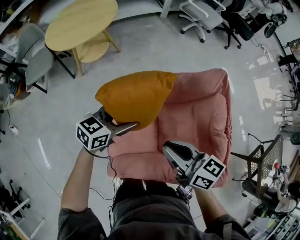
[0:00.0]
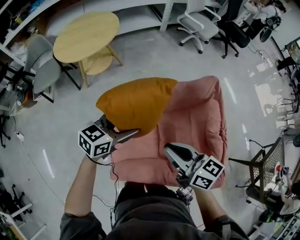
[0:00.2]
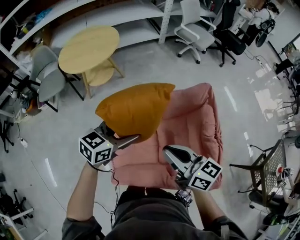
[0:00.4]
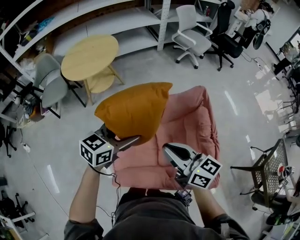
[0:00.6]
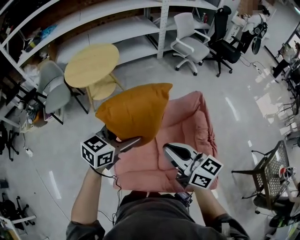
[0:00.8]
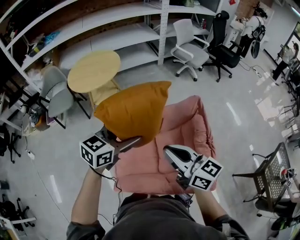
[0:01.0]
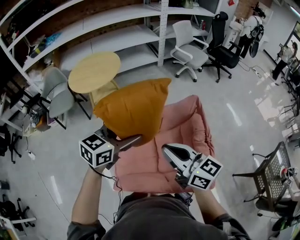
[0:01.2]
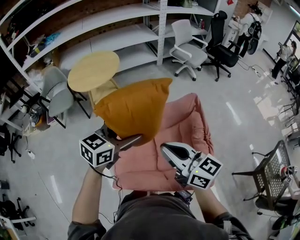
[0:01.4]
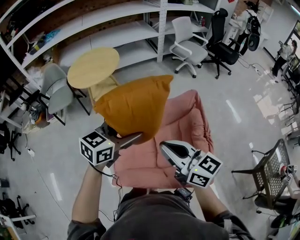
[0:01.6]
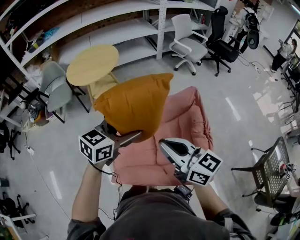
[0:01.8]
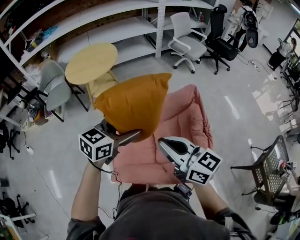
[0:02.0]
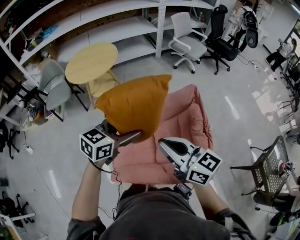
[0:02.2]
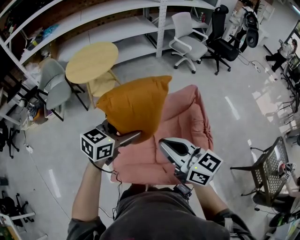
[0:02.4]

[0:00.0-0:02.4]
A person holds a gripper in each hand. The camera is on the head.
0:00.0 to 0:01.2: The two grippers go about 20 cm upward. The right gripper changes its angle by approximately 20 degrees.
0:01.2 to 0:02.4: The grippers stay close to where they were, moving slightly.

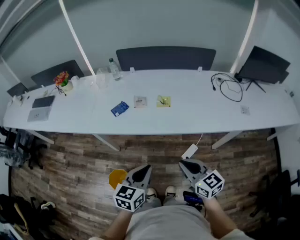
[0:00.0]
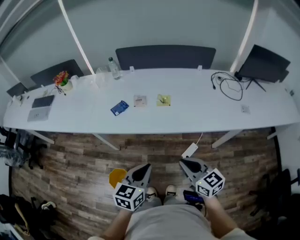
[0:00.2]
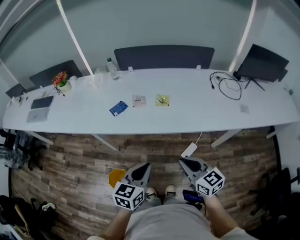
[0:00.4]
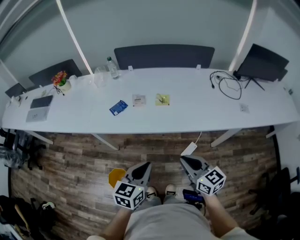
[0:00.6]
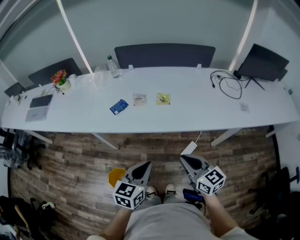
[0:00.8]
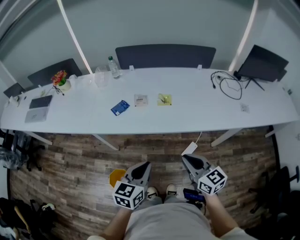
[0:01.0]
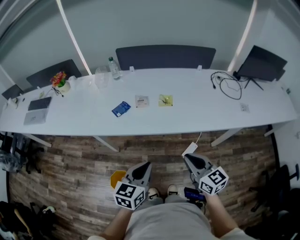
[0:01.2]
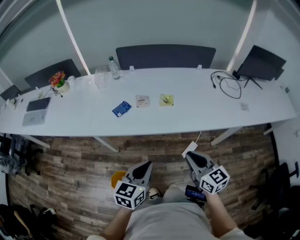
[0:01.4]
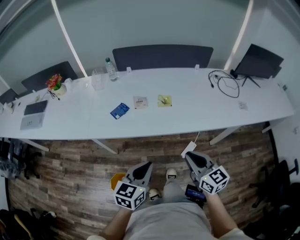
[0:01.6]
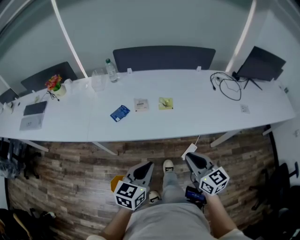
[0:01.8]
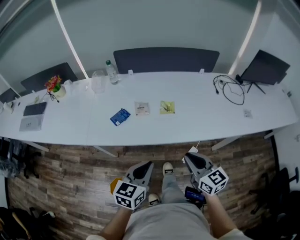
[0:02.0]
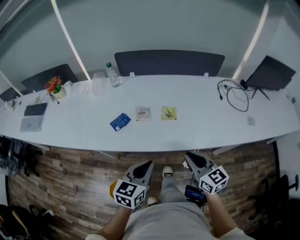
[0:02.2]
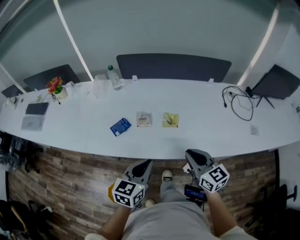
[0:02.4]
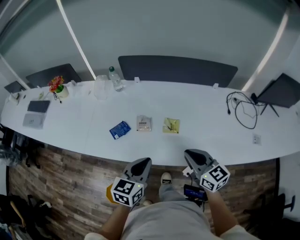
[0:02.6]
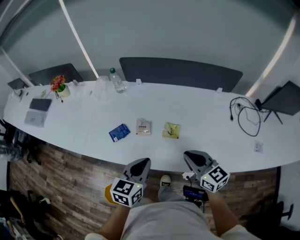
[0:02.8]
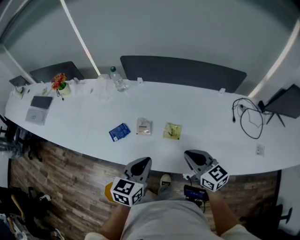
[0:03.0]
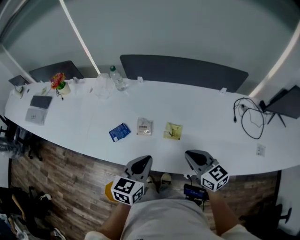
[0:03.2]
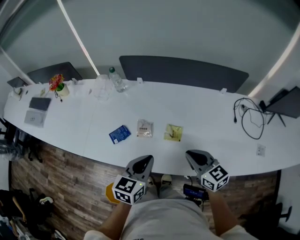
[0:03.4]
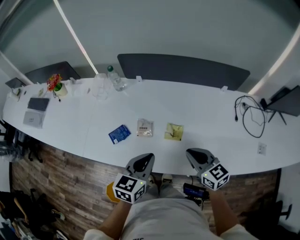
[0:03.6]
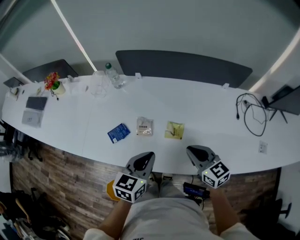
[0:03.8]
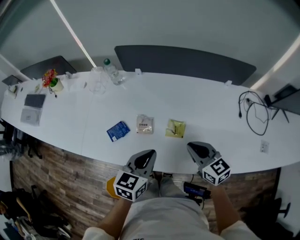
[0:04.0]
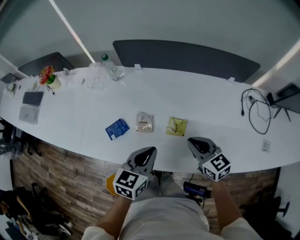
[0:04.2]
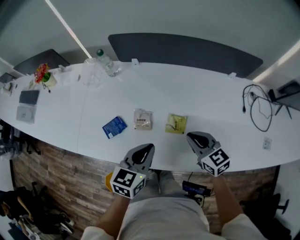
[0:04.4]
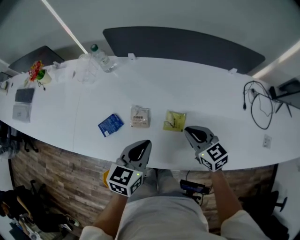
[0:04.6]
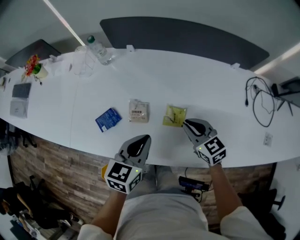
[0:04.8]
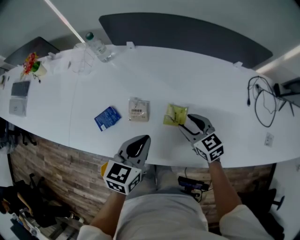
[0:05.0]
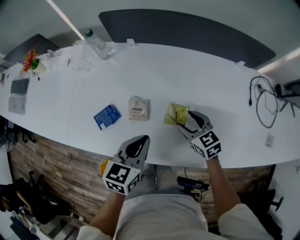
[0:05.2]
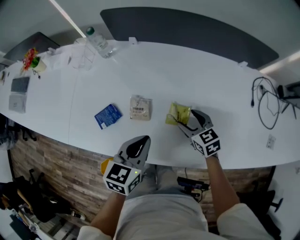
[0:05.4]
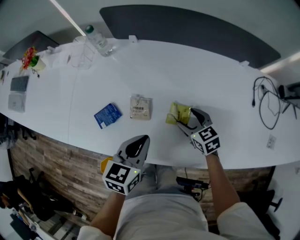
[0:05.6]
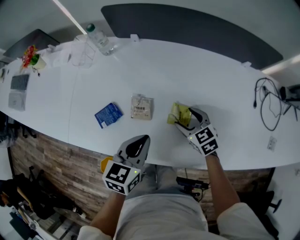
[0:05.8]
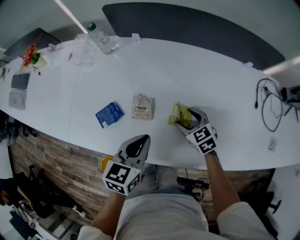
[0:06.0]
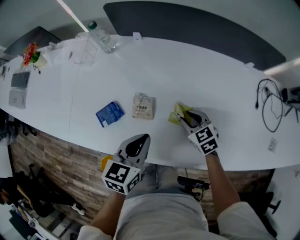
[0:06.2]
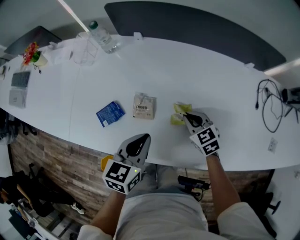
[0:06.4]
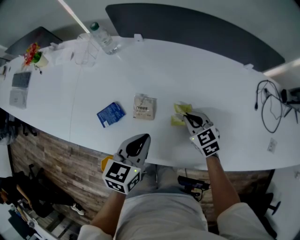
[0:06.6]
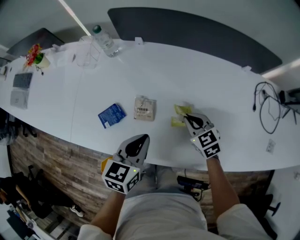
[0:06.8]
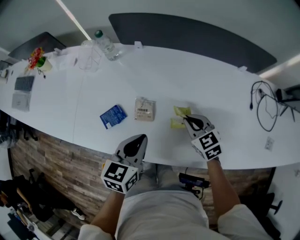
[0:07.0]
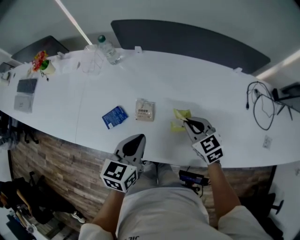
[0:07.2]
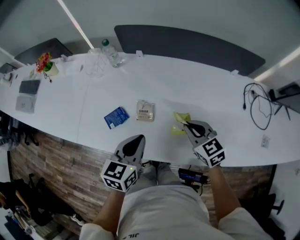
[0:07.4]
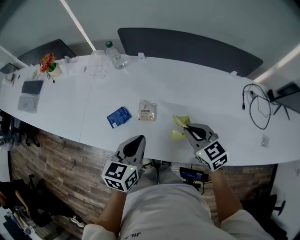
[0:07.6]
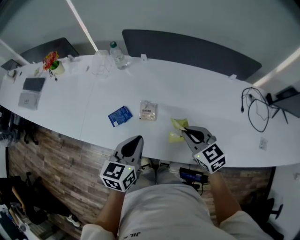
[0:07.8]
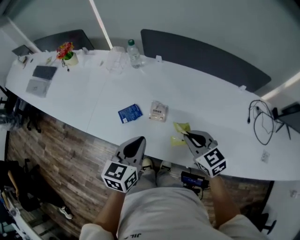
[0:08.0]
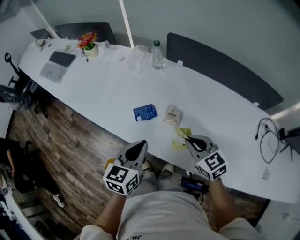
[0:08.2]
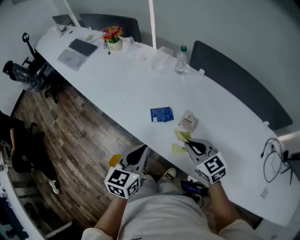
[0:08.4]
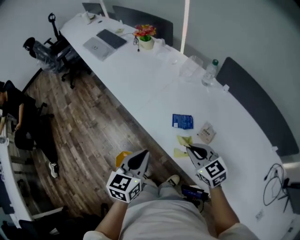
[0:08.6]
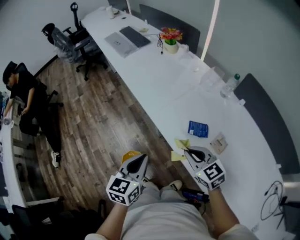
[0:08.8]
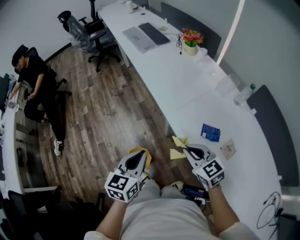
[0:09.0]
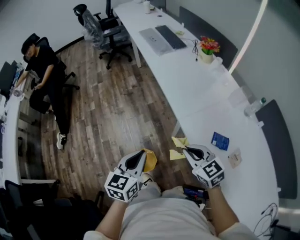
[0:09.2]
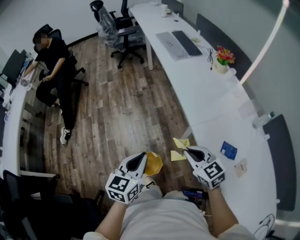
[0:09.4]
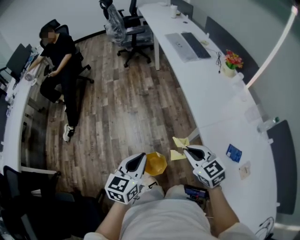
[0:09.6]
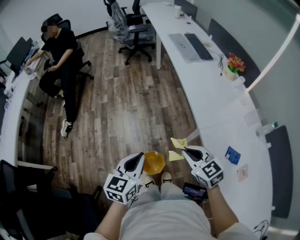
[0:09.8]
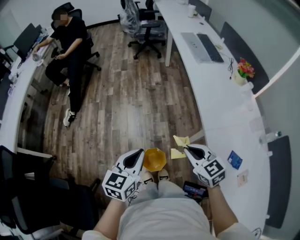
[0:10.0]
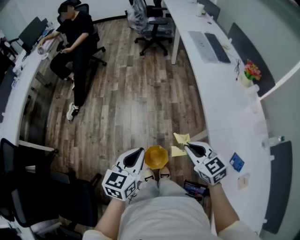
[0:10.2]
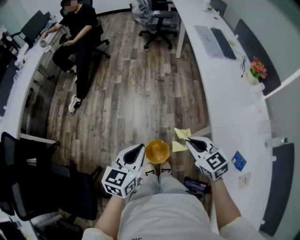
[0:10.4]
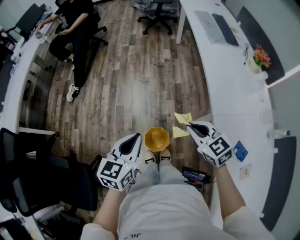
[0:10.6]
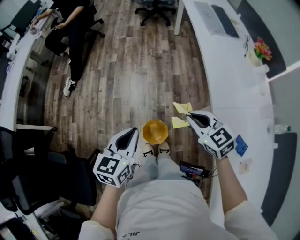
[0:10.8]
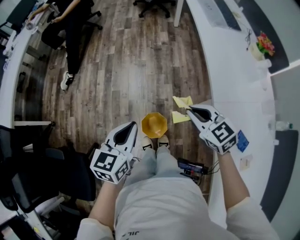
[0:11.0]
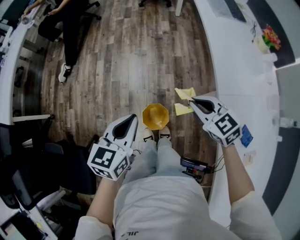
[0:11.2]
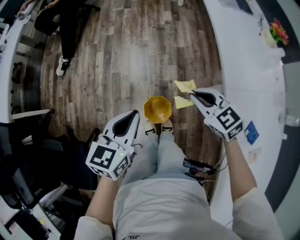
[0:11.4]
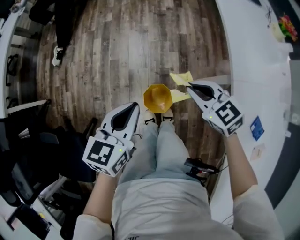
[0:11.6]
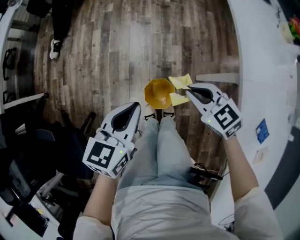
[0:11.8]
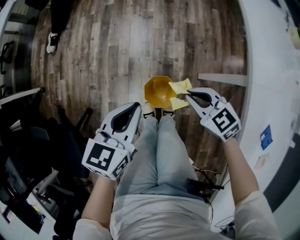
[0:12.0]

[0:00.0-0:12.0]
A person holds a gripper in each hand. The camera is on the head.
0:00.0 to 0:01.6: The left gripper moves approximately 5 cm.
0:01.6 to 0:03.0: The two grippers go approximately 25 cm forward.
0:03.0 to 0:04.4: The left gripper goes roughly 10 cm forward. Meanwhile the right gripper goes some 10 cm forward and downward.
0:04.4 to 0:06.0: The right gripper heads downward and forward, covering some 15 cm, swivels approximately 20 degrees, and opens up; the left gripper moves downward, about 5 cm.
0:06.0 to 0:07.6: The left gripper moves upward, some 5 cm; the right gripper travels upward by approximately 15 cm, and closes up.
0:07.6 to 0:09.0: The right gripper changes place by some 40 cm, and rotates roughly 50 degrees. Meanwhile the left gripper changes place by approximately 40 cm, and swivels about 50 degrees.
0:09.0 to 0:10.4: The left gripper shifts roughly 20 cm to the left, and rotates roughly 20 degrees. The right gripper travels to the left and forward by roughly 25 cm, and rotates approximately 30 degrees.
0:10.4 to 0:12.0: Both grippers move downward, roughly 20 cm. The right gripper changes its angle by about 20 degrees.

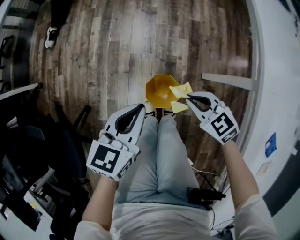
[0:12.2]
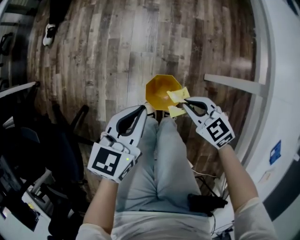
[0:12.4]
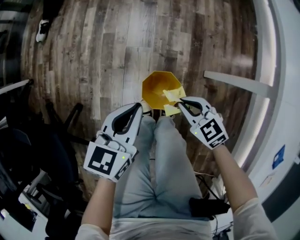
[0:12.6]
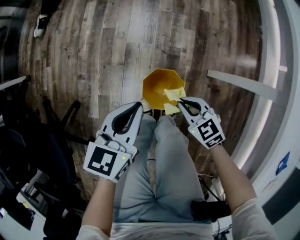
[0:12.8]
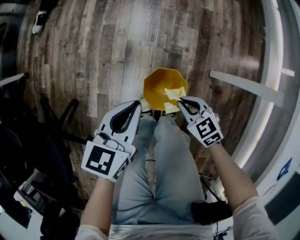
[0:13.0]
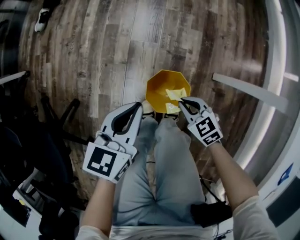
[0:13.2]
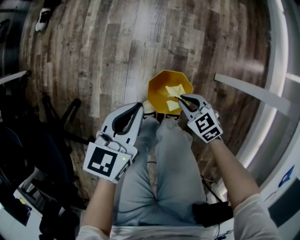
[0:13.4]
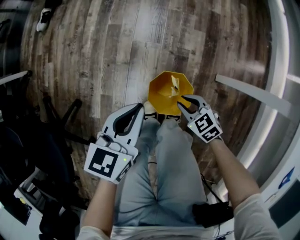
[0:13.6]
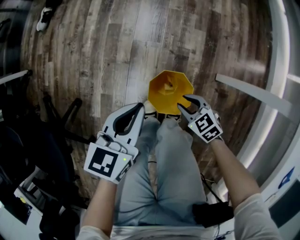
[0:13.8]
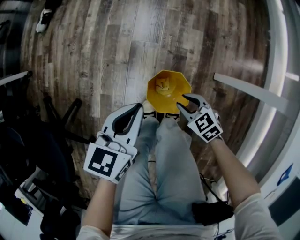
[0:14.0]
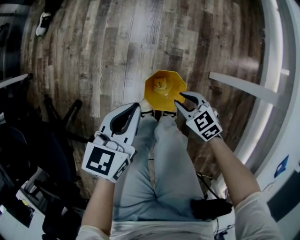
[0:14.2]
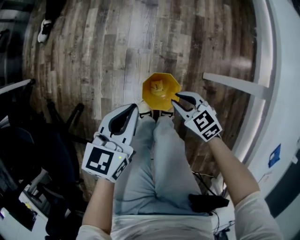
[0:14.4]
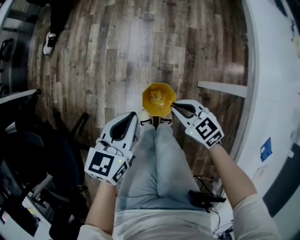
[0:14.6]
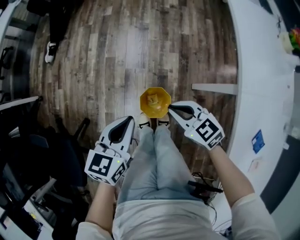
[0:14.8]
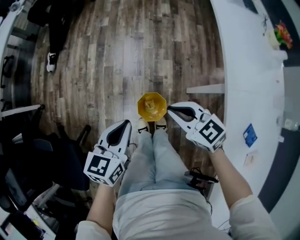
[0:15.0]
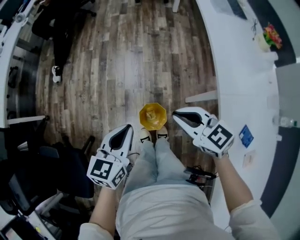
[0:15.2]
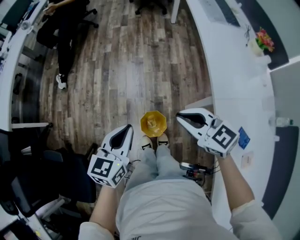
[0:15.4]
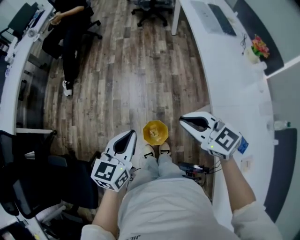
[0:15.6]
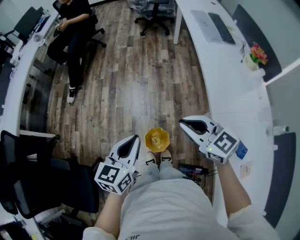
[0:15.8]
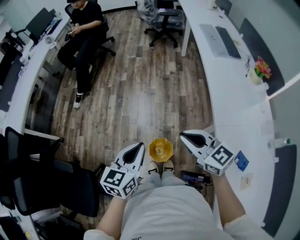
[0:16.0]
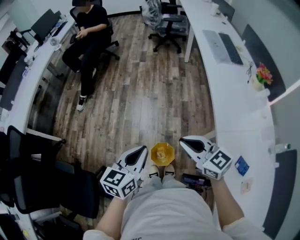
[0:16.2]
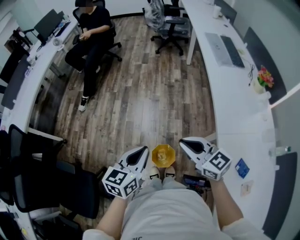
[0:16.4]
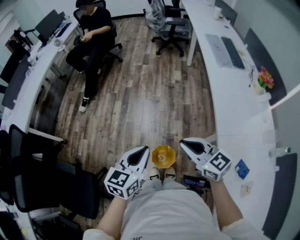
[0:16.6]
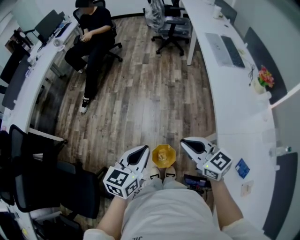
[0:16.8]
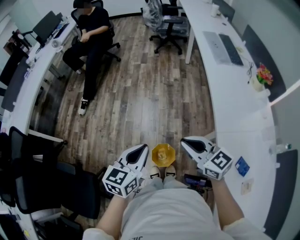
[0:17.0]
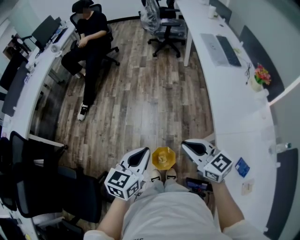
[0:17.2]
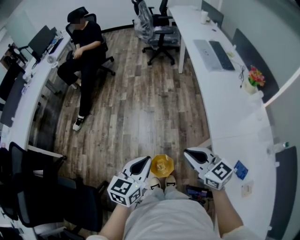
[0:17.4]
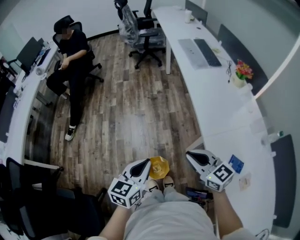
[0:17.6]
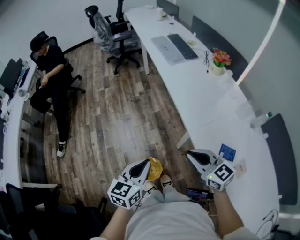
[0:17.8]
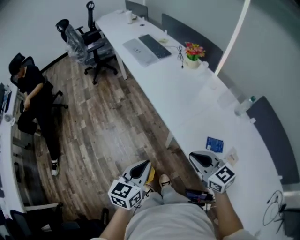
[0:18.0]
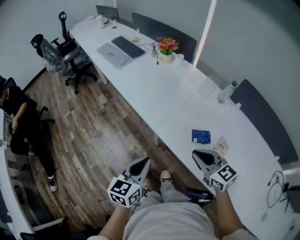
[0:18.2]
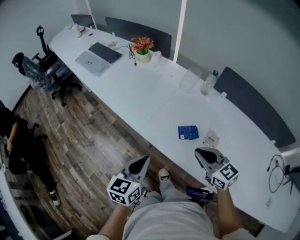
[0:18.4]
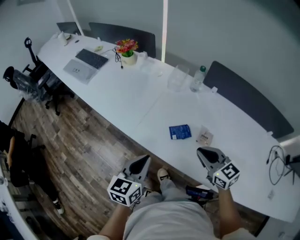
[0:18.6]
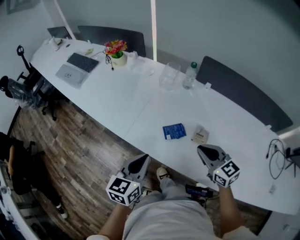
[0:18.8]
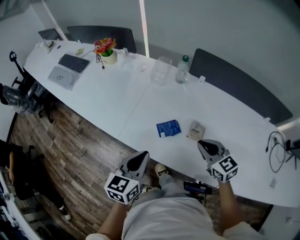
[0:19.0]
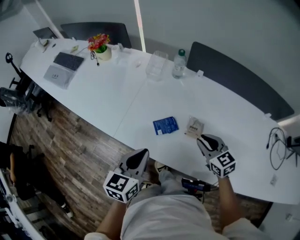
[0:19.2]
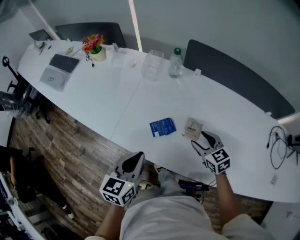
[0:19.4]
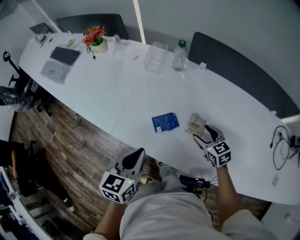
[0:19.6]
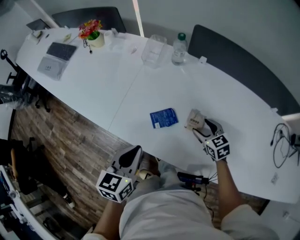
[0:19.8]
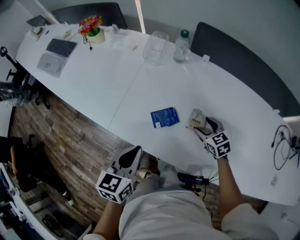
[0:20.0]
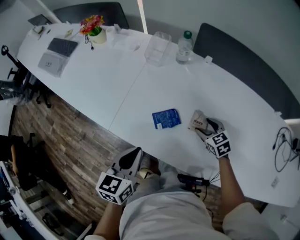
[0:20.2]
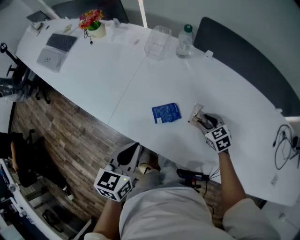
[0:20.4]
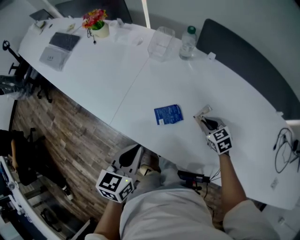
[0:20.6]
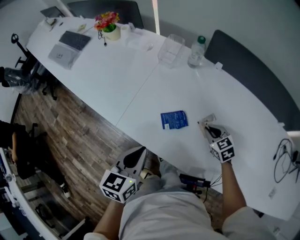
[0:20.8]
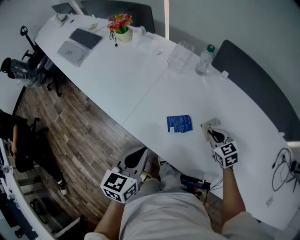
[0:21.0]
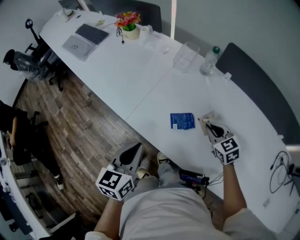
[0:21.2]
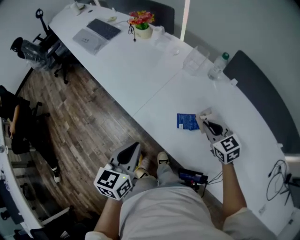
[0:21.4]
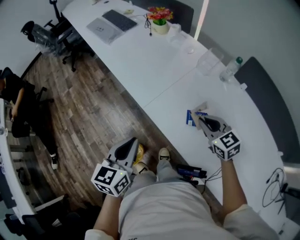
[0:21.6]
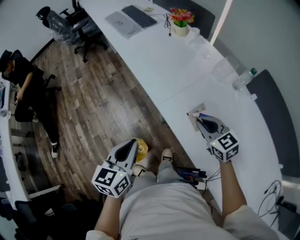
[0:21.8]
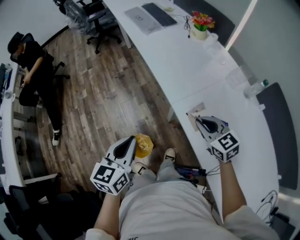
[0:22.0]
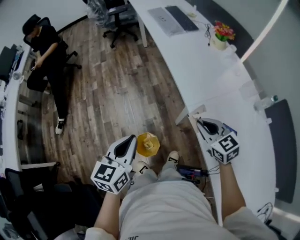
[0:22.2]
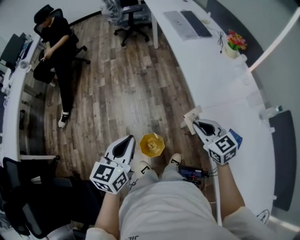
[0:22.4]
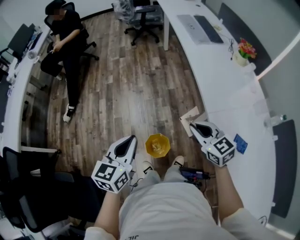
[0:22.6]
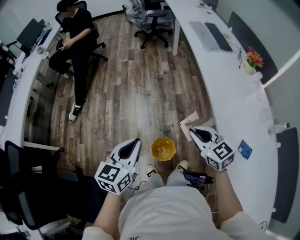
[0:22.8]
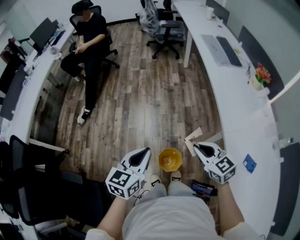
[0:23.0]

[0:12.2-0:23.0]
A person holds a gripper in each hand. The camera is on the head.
0:12.2 to 0:13.8: The left gripper is displaced downward by about 15 cm; the right gripper is displaced downward by some 25 cm.
0:13.8 to 0:15.2: The left gripper is displaced upward by approximately 30 cm, while the right gripper shifts about 50 cm upward, and swivels some 30 degrees.
0:15.2 to 0:16.8: Both grippers travel together upward, approximately 10 cm.
0:16.8 to 0:18.4: The left gripper ends up about 30 cm from where it was, and changes its angle by approximately 50 degrees, while the right gripper shifts by about 40 cm, and swivels some 60 degrees.
0:18.4 to 0:20.0: The left gripper goes some 15 cm to the right and forward. Meanwhile the right gripper is displaced downward, to the right and forward by some 30 cm, swivels some 30 degrees, and opens its fingers.
0:20.0 to 0:21.4: The right gripper shifts roughly 15 cm to the left and upward, changes its angle by roughly 20 degrees, and closes its fingers. The left gripper heads to the left, covering roughly 10 cm, and turns by roughly 20 degrees.
0:21.4 to 0:23.0: The two grippers travel together, roughly 50 cm. The left gripper changes its angle by approximately 40 degrees. The right gripper swivels roughly 50 degrees.
